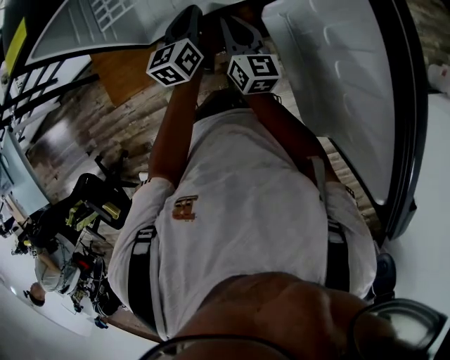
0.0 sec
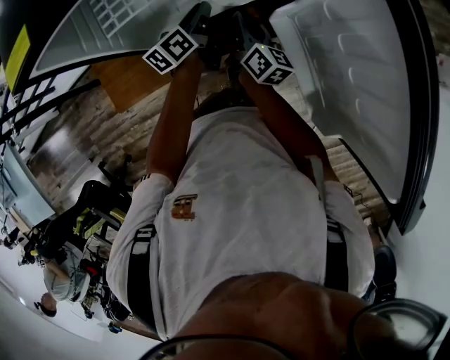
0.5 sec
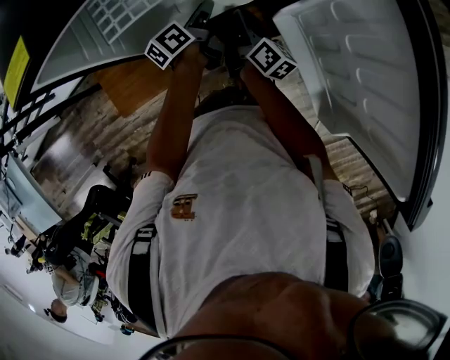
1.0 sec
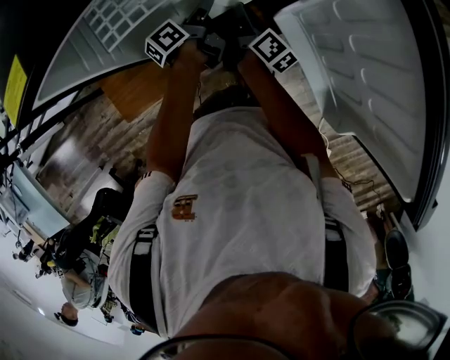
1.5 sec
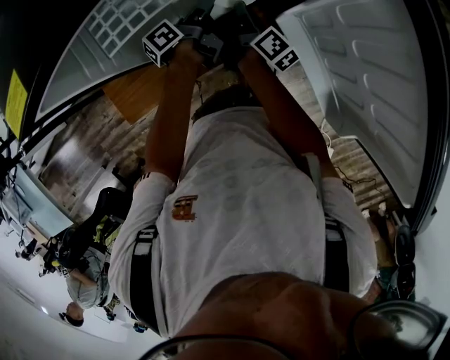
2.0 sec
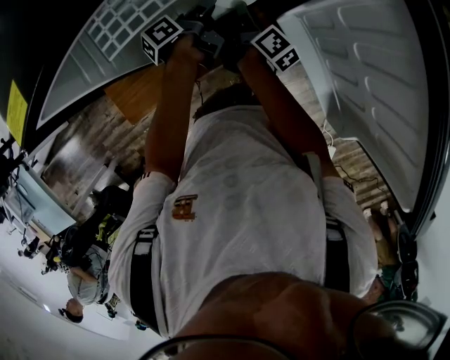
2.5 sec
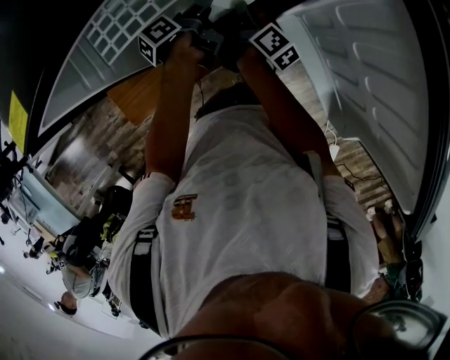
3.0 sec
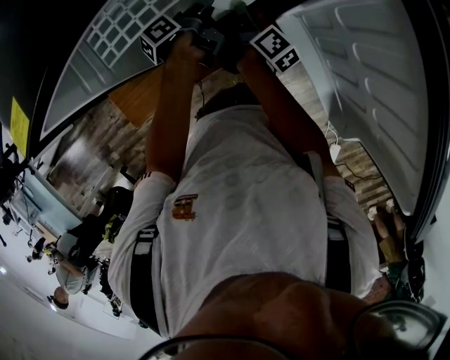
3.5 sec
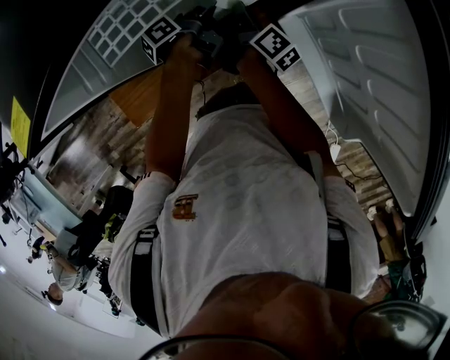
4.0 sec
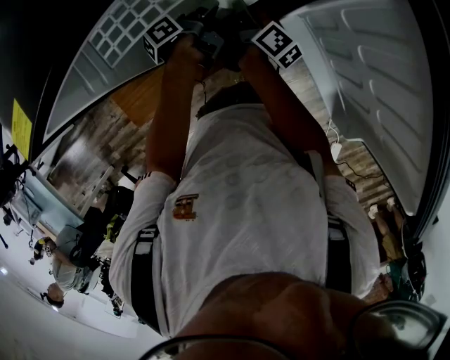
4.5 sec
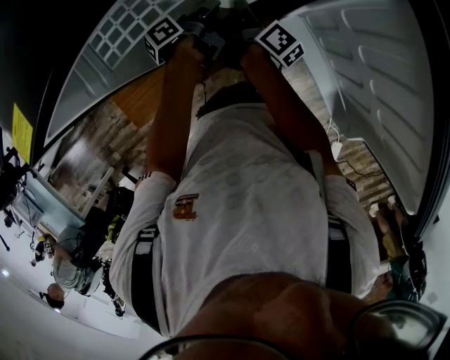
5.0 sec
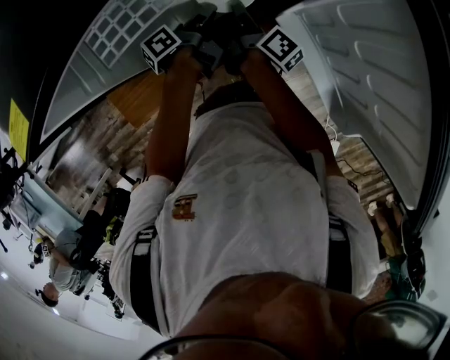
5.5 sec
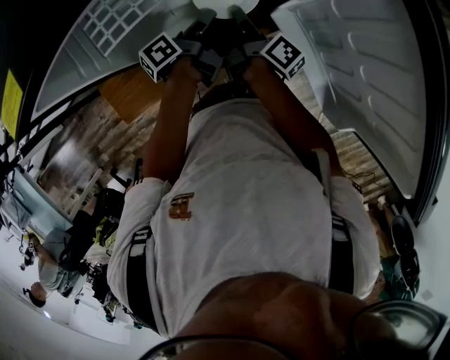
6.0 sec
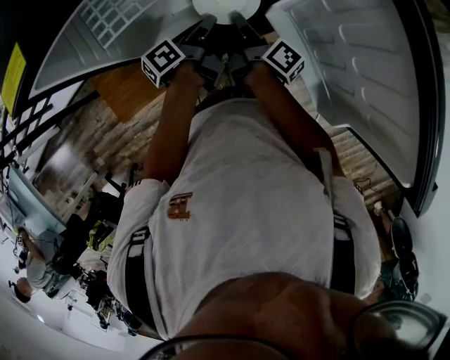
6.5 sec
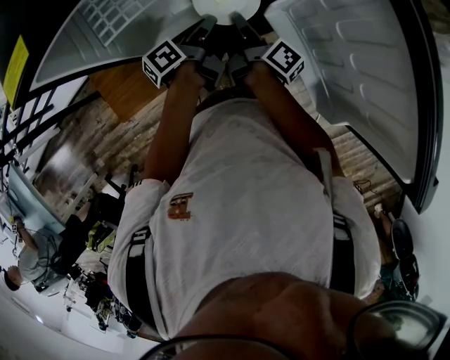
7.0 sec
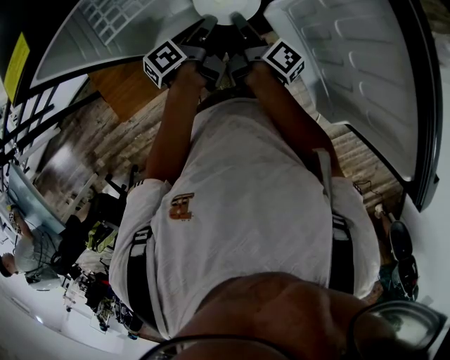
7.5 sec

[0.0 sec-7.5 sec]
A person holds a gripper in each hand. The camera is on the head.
0.0 sec to 2.0 sec: Both grippers move downward and forward, approximately 10 cm. The left gripper rotates around the line of its fingers by about 60 degrees, counterclockwise from behind, and opens. The right gripper rotates around the line of its fingers by some 50 degrees, clockwise from behind, and opens its fingers.
2.0 sec to 5.5 sec: The grippers make only small movements.
5.5 sec to 7.5 sec: The grippers both shift backward by roughly 5 cm.

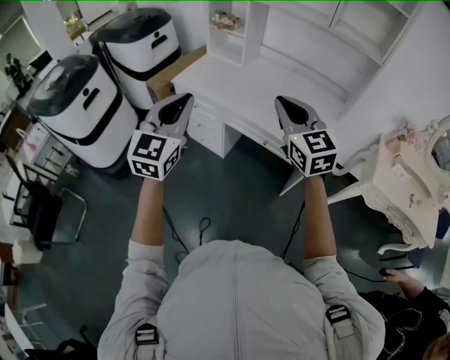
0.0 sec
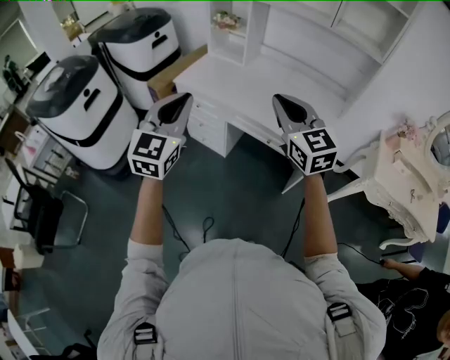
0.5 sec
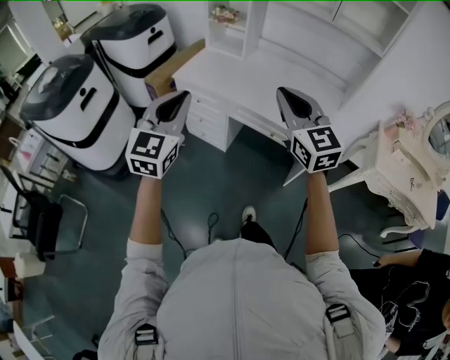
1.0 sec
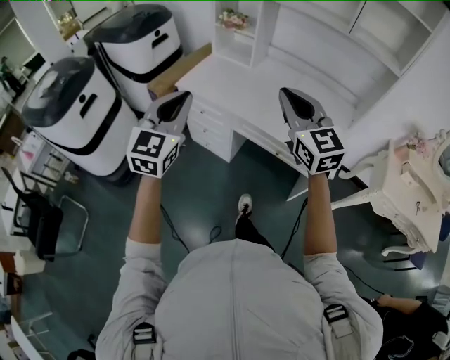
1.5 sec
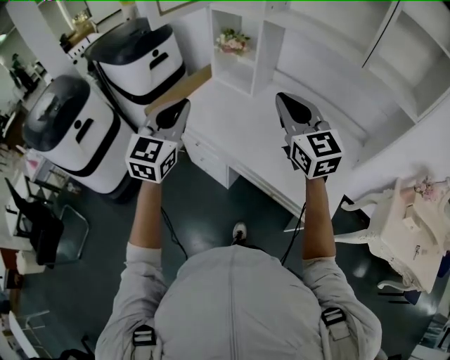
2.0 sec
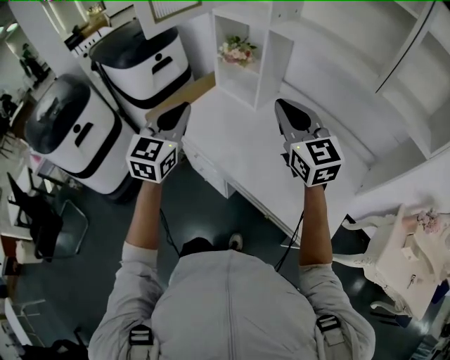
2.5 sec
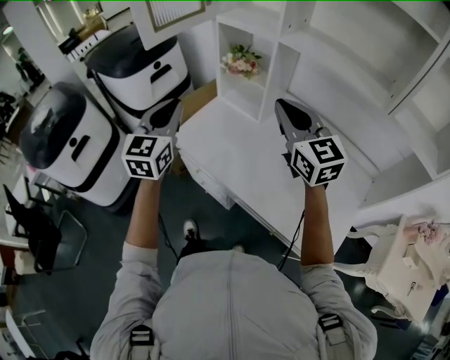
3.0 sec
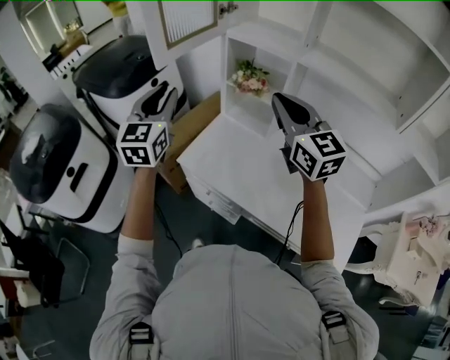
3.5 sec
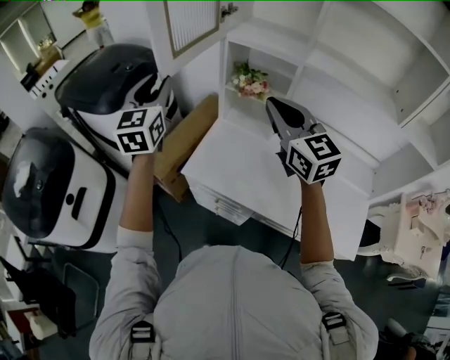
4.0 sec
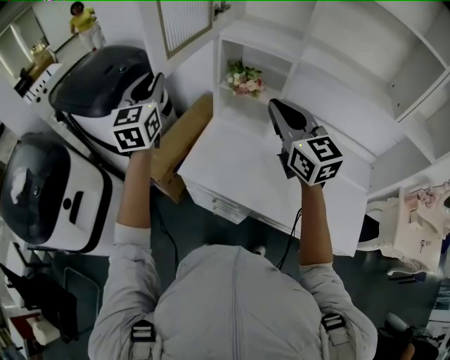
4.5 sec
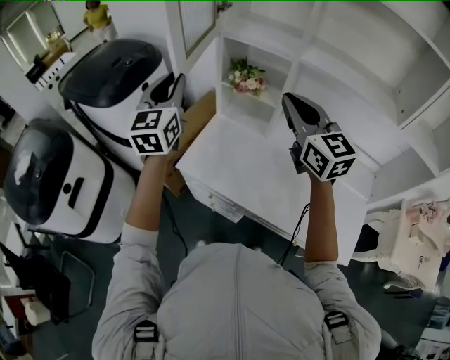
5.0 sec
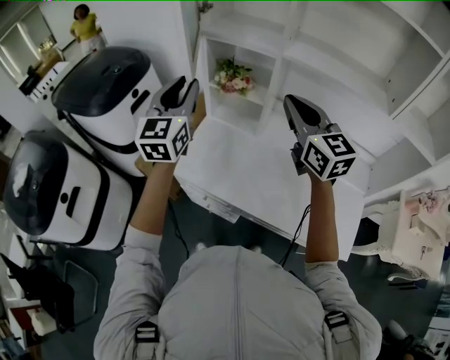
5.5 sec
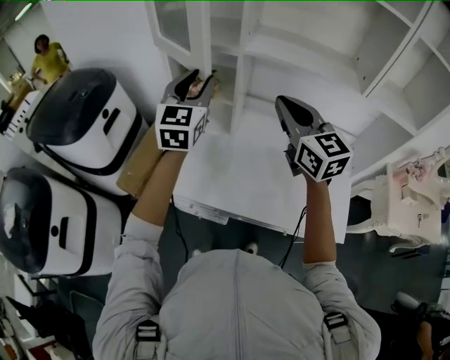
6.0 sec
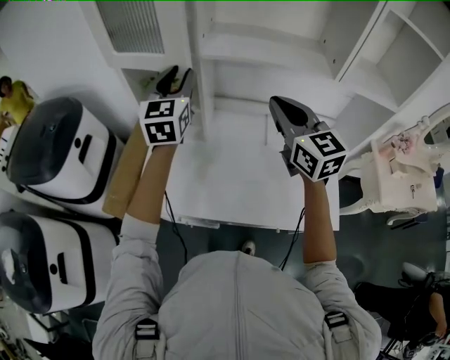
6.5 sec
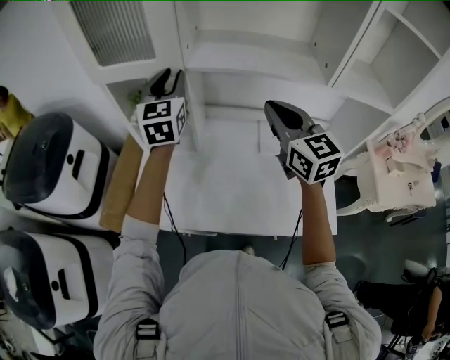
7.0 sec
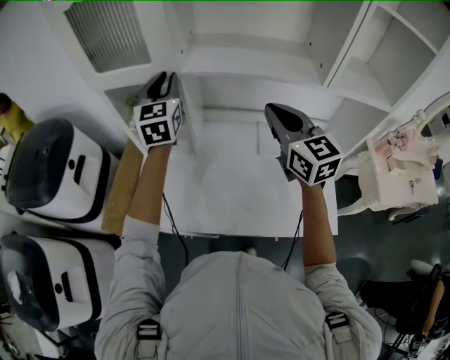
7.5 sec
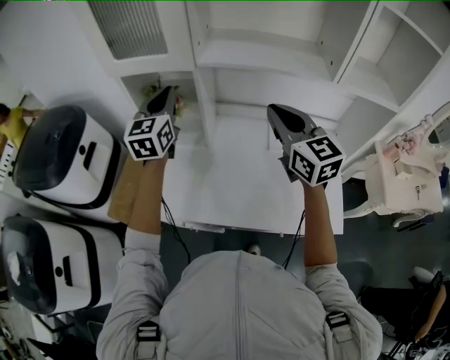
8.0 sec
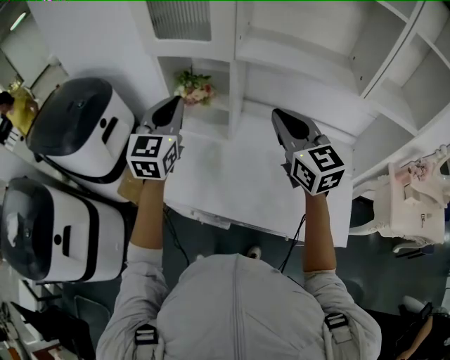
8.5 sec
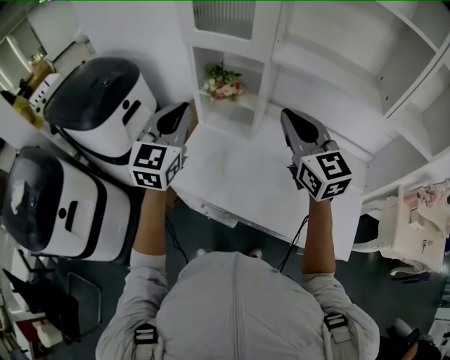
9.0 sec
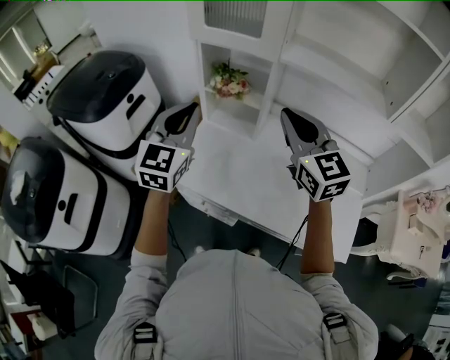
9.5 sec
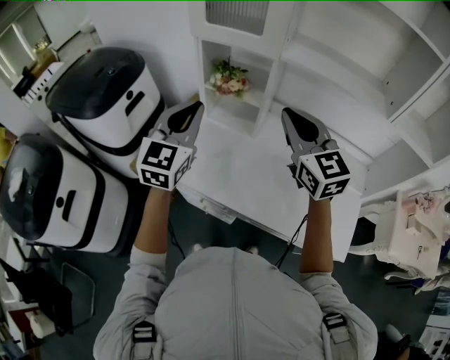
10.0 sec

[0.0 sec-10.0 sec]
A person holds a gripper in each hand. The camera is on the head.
0.0 sec to 2.0 sec: The two grippers go roughly 25 cm forward.
2.0 sec to 4.0 sec: Both grippers move forward and to the left, roughly 35 cm. The left gripper opens.
4.0 sec to 6.0 sec: The right gripper goes approximately 15 cm to the right; the left gripper travels to the right by about 25 cm.
6.0 sec to 8.0 sec: The right gripper heads to the right, covering roughly 10 cm, while the left gripper goes approximately 5 cm forward, and closes its fingers.
8.0 sec to 10.0 sec: The right gripper shifts roughly 15 cm to the left. Meanwhile the left gripper shifts roughly 20 cm backward and to the left.

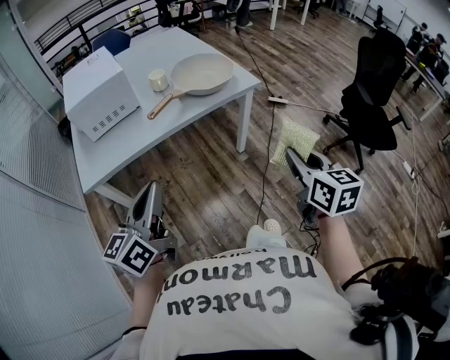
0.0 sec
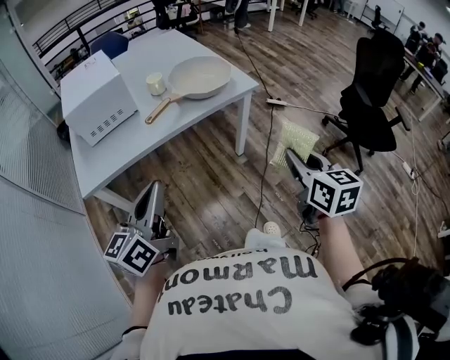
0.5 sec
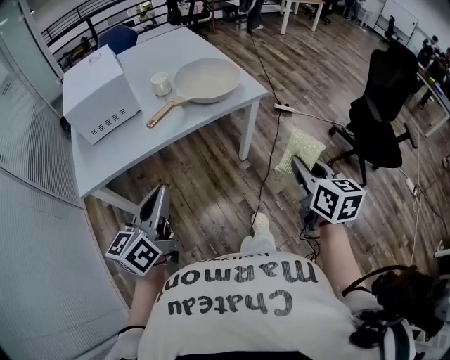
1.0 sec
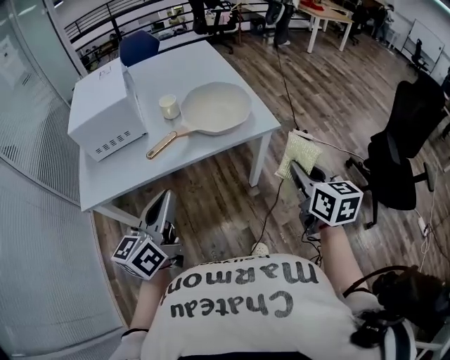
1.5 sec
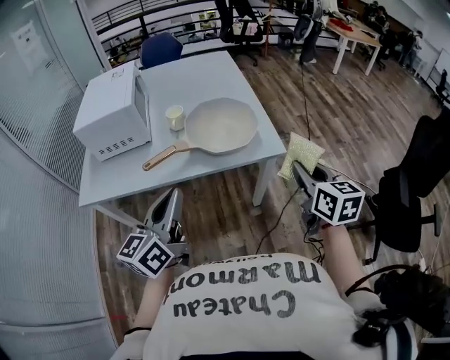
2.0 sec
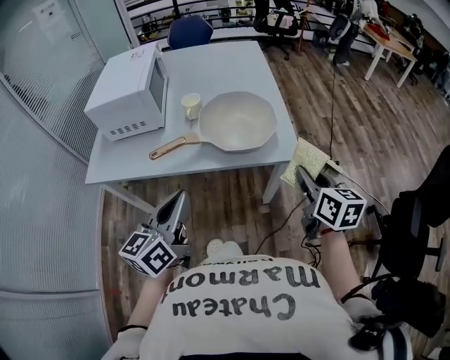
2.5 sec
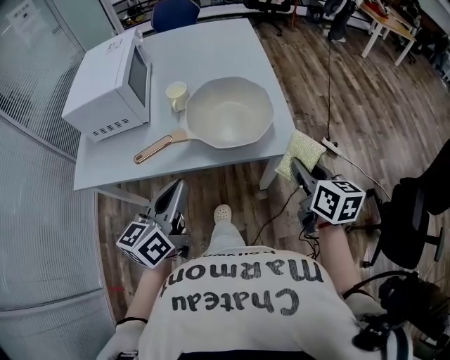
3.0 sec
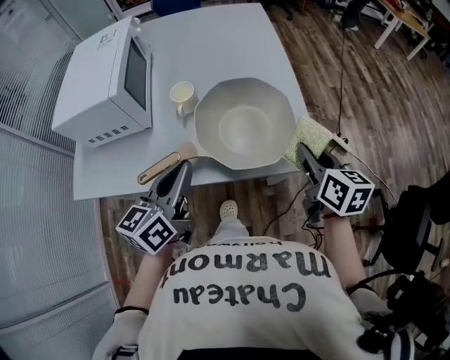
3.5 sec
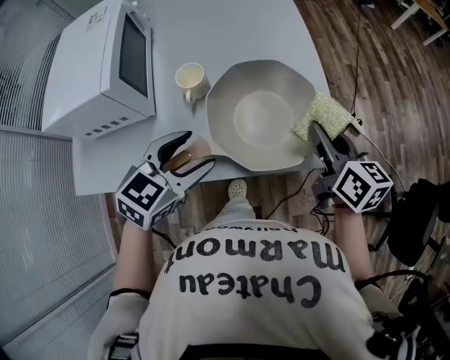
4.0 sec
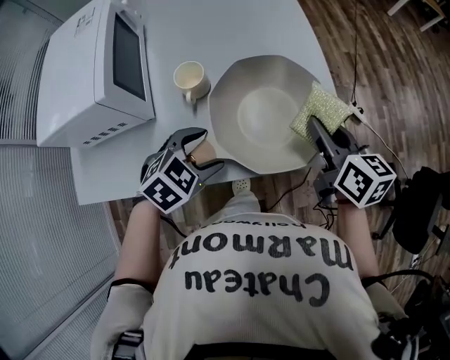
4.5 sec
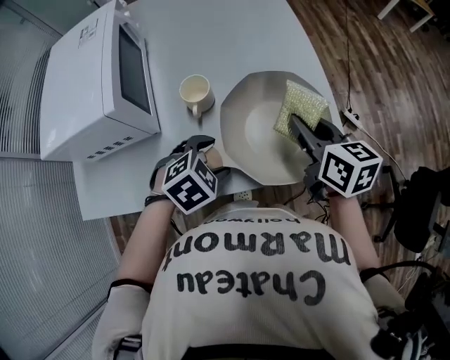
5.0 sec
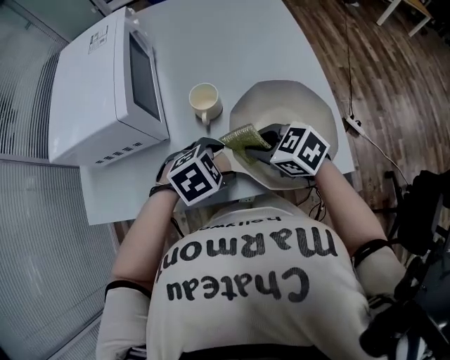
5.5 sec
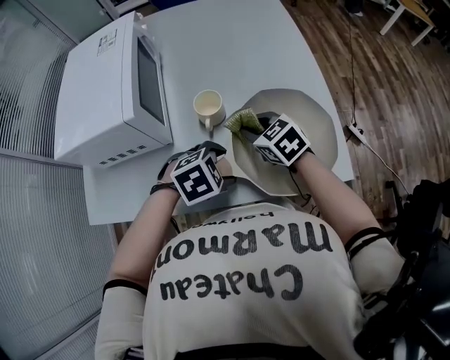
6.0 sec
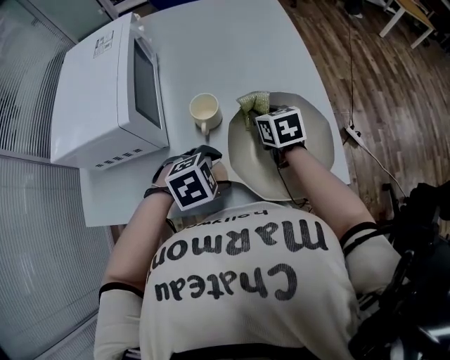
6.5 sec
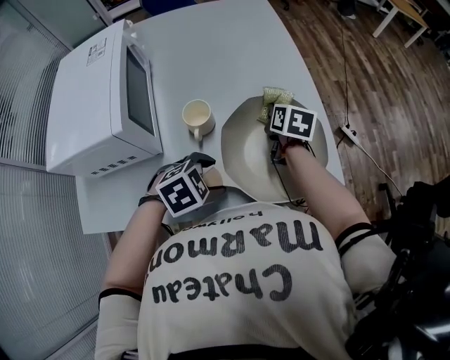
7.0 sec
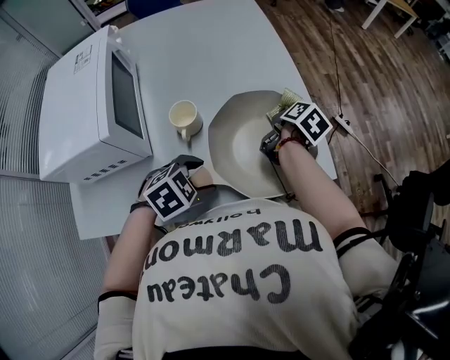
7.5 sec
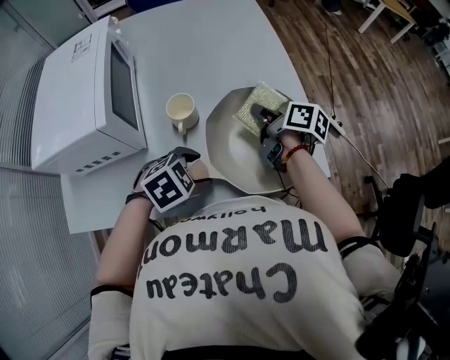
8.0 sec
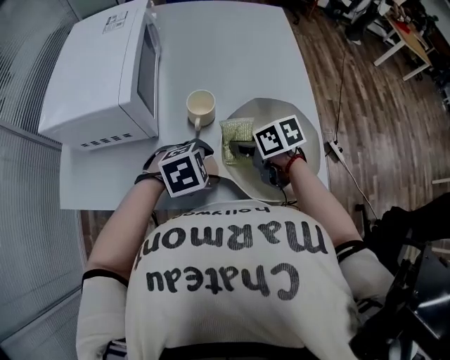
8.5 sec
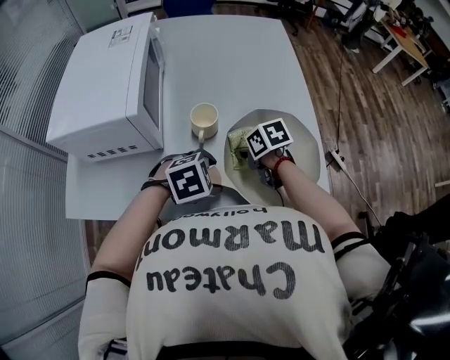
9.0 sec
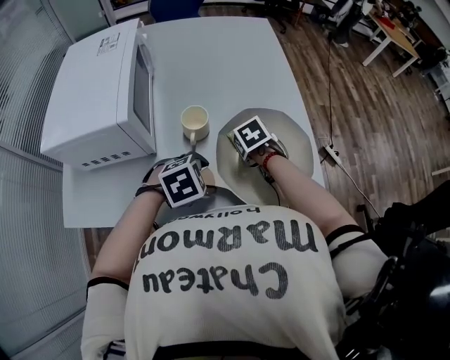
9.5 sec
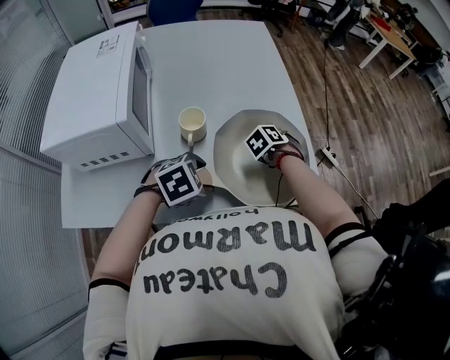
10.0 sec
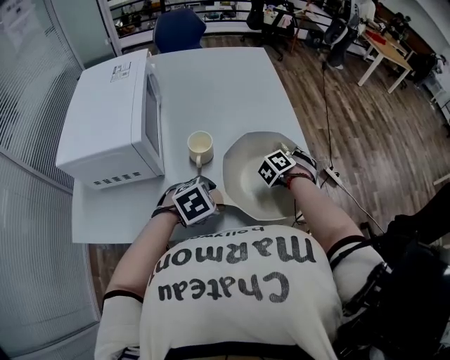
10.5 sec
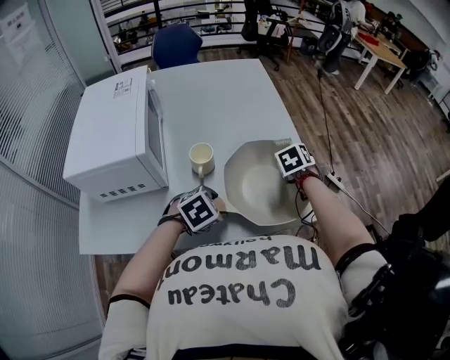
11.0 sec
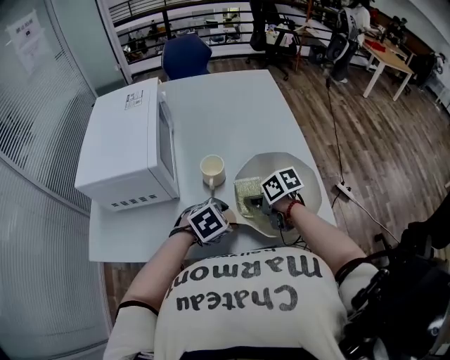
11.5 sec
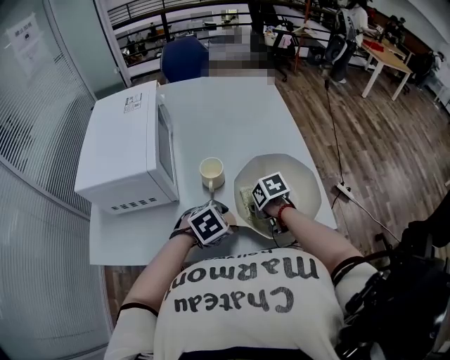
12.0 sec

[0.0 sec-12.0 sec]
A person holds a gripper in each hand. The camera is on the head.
0.0 sec to 2.0 sec: The left gripper goes some 25 cm forward and to the right, while the right gripper travels forward by some 30 cm.
2.0 sec to 4.0 sec: The right gripper is displaced forward by about 25 cm; the left gripper is displaced forward and downward by about 30 cm, tips its fingers downward by about 40 degrees, and opens up.
4.0 sec to 6.0 sec: The right gripper moves some 25 cm, and swivels some 50 degrees. Meanwhile the left gripper goes some 10 cm downward, and tips its fingers downward by about 30 degrees.
6.0 sec to 8.0 sec: The right gripper rotates around the line of its fingers by approximately 70 degrees, clockwise from behind.
8.0 sec to 10.0 sec: The right gripper is displaced downward by some 10 cm, and tilts its fingers about 40 degrees downward.
10.0 sec to 12.0 sec: The right gripper reaches roughly 10 cm upward, then returns, and changes its angle by roughly 50 degrees.
